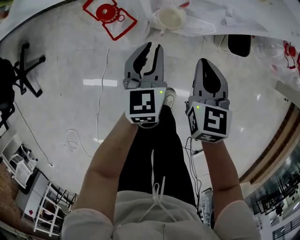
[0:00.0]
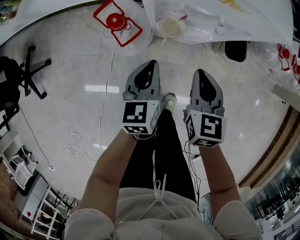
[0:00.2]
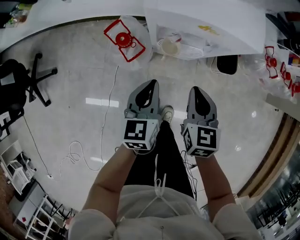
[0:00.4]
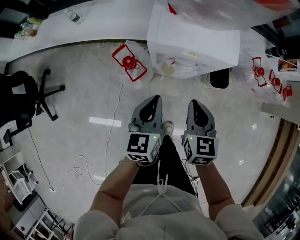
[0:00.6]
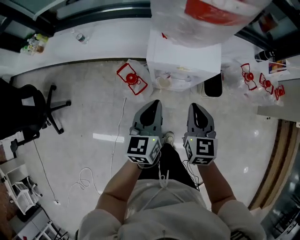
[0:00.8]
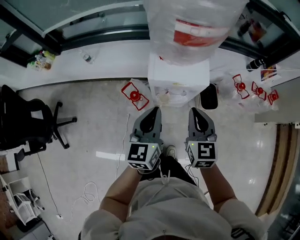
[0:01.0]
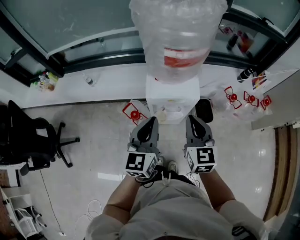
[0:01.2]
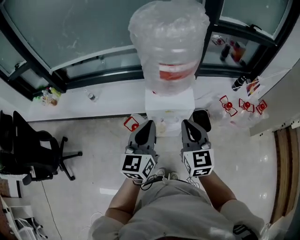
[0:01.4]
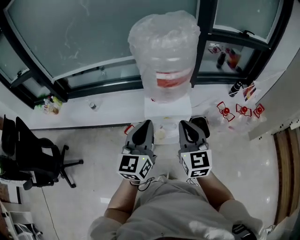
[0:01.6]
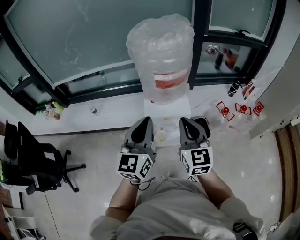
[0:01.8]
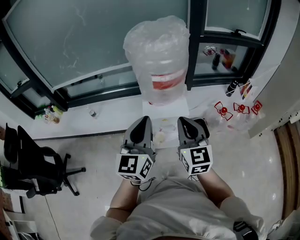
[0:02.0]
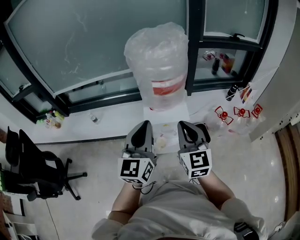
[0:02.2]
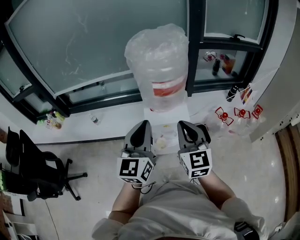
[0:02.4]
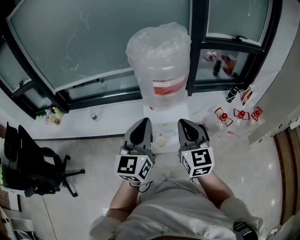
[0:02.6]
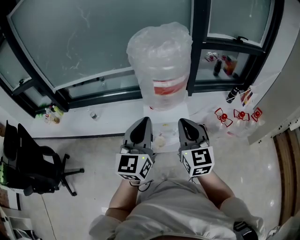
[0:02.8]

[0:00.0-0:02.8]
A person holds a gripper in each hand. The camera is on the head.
0:00.0 to 0:01.4: The two grippers go about 50 cm upward. The left gripper changes its angle by some 30 degrees. Meanwhile the right gripper rotates approximately 30 degrees.
0:01.4 to 0:02.8: The grippers both shift upward by some 10 cm.

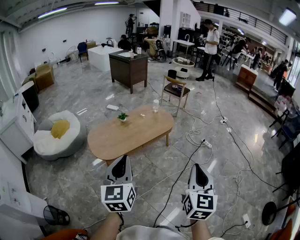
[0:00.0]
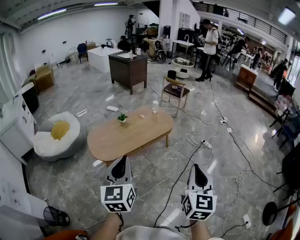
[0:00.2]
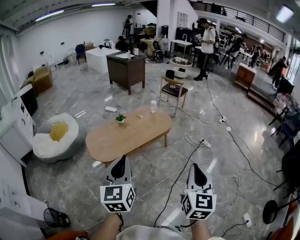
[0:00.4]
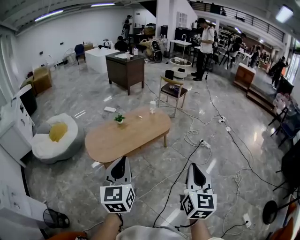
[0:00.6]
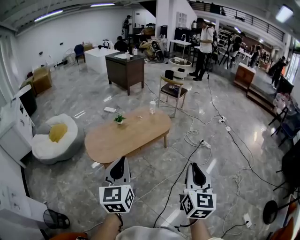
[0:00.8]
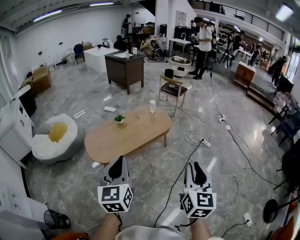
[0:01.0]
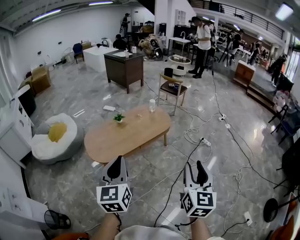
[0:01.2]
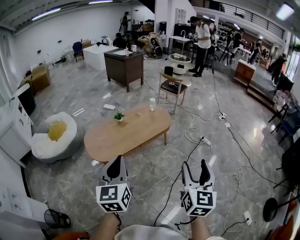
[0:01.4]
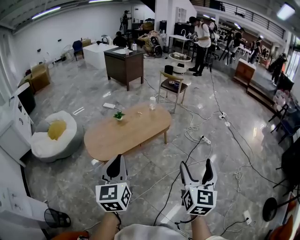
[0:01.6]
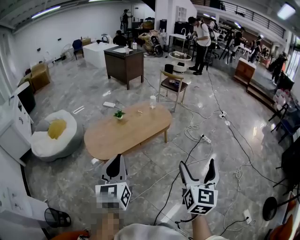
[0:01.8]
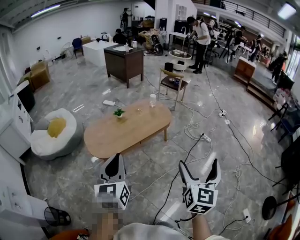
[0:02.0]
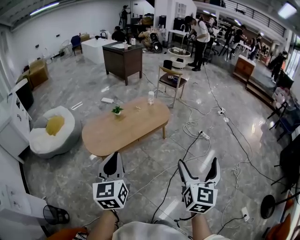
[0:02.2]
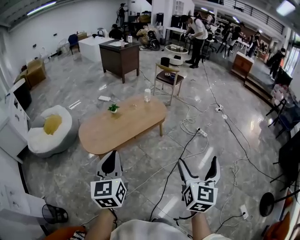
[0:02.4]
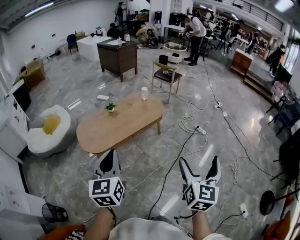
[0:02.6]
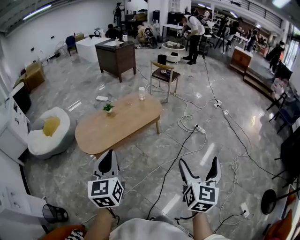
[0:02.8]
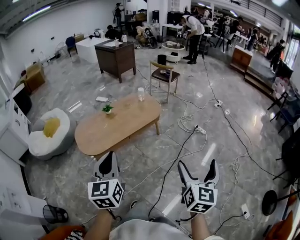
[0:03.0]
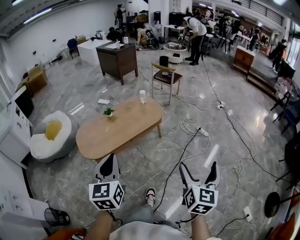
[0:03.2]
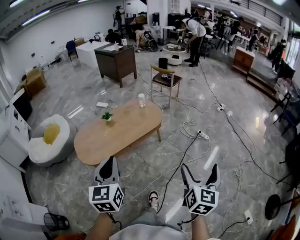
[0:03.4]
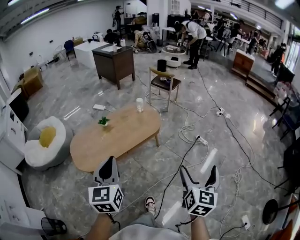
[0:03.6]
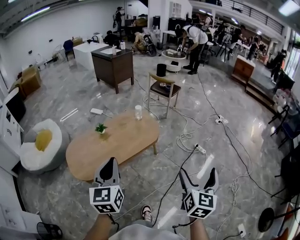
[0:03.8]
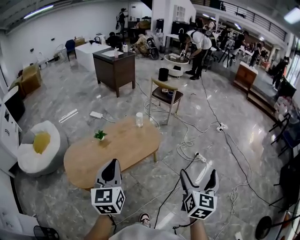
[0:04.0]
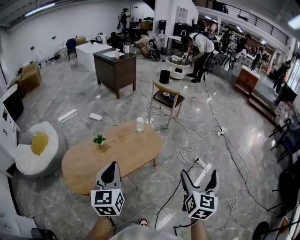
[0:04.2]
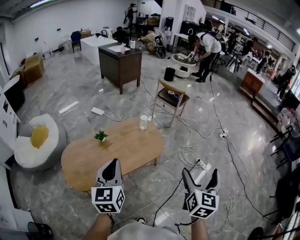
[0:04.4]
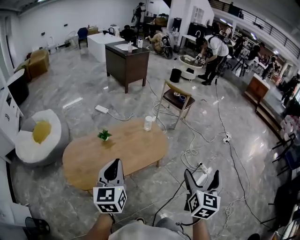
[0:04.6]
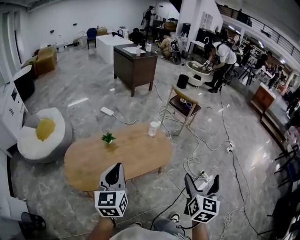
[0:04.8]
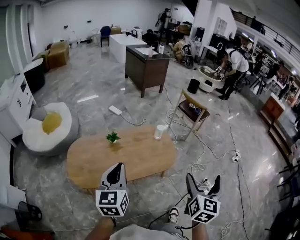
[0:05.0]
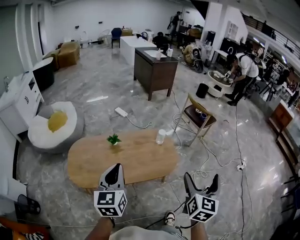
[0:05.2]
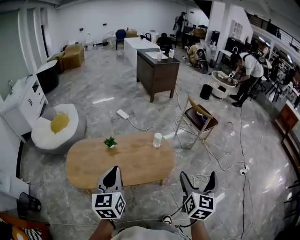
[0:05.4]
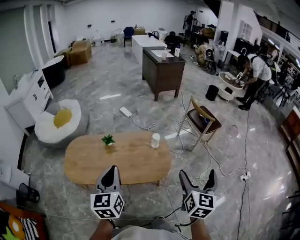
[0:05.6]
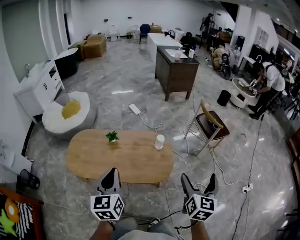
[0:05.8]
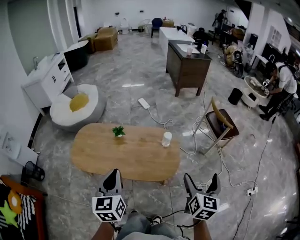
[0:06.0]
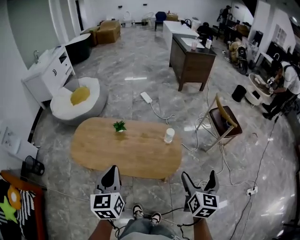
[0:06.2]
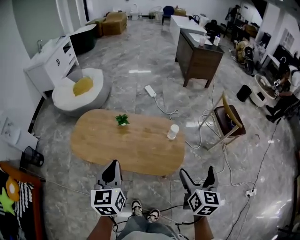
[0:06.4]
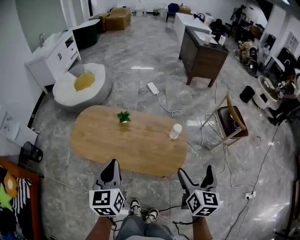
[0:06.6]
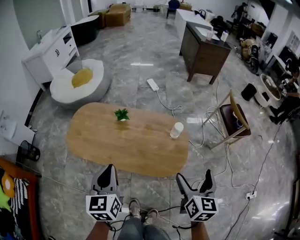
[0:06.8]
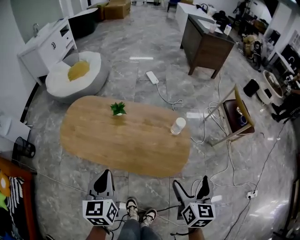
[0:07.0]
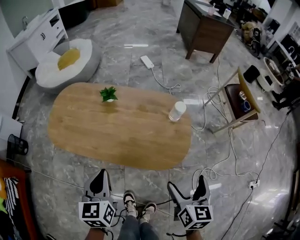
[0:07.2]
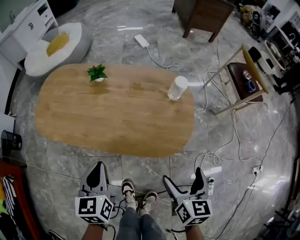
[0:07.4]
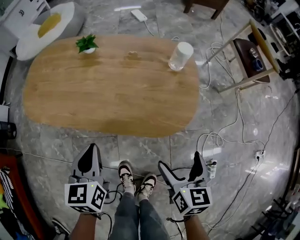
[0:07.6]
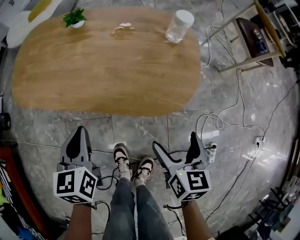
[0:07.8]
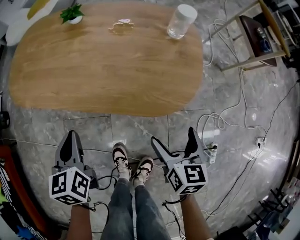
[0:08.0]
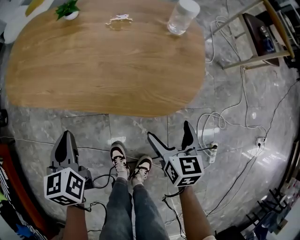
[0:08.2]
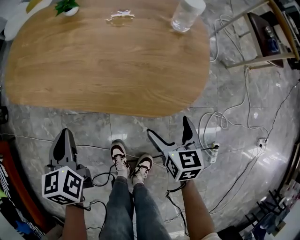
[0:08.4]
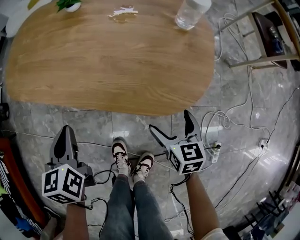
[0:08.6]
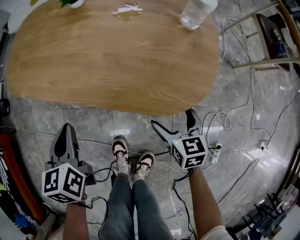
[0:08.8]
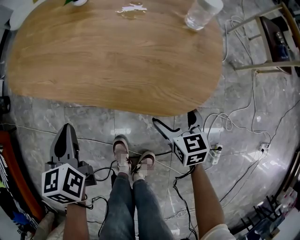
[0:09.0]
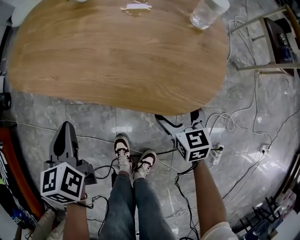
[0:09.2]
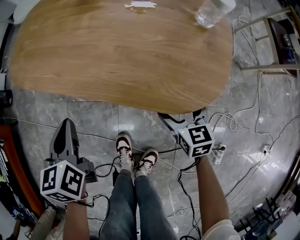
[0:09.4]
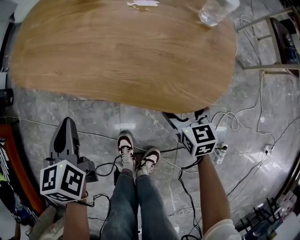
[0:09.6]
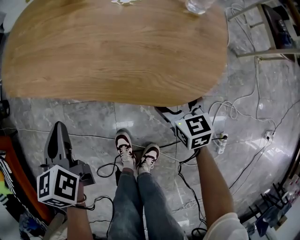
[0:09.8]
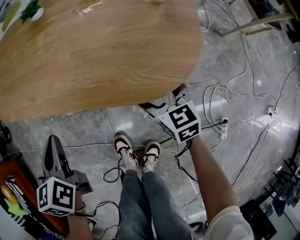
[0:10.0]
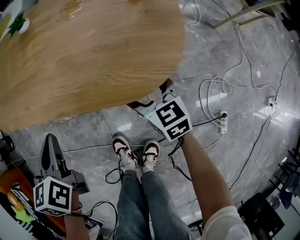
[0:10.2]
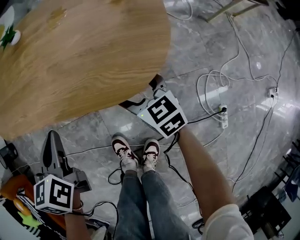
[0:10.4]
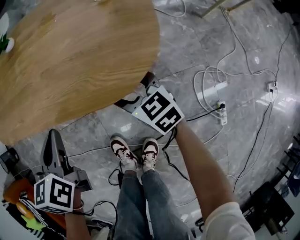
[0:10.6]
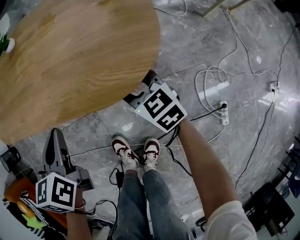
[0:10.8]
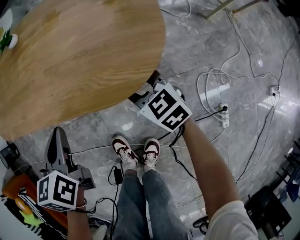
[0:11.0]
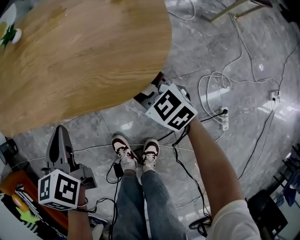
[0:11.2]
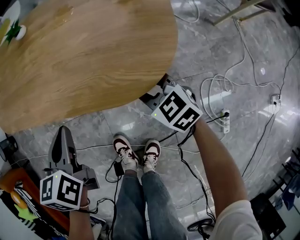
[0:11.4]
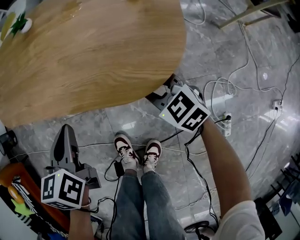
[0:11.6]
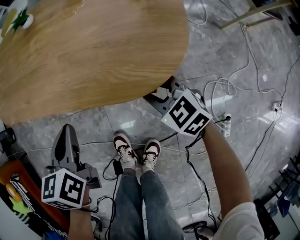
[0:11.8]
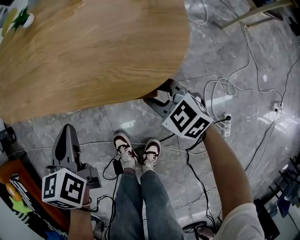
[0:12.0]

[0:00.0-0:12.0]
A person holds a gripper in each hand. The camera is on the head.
0:00.0 to 0:01.6: The right gripper opens.
0:01.6 to 0:03.0: Both grippers move to the right, roughly 10 cm.
0:03.0 to 0:04.4: The grippers both shift forward by roughly 35 cm.
0:04.4 to 0:06.0: The left gripper moves approximately 20 cm, and swivels approximately 40 degrees. The right gripper changes place by some 35 cm, and changes its angle by roughly 40 degrees.
0:06.0 to 0:07.6: Both grippers travel together downward, approximately 35 cm. The right gripper turns by some 30 degrees.
0:07.6 to 0:09.0: The right gripper travels downward by about 20 cm, and swivels approximately 20 degrees. Meanwhile the left gripper goes approximately 10 cm downward.
0:09.0 to 0:10.4: The left gripper travels to the right by approximately 10 cm.
0:10.4 to 0:12.0: The right gripper rotates about 30 degrees, and closes its fingers.

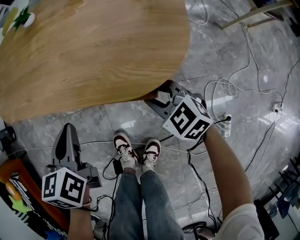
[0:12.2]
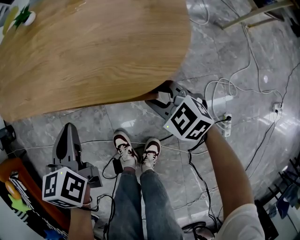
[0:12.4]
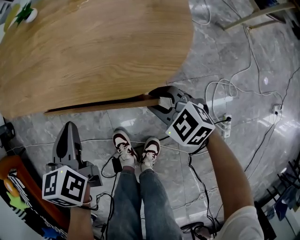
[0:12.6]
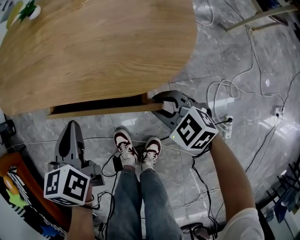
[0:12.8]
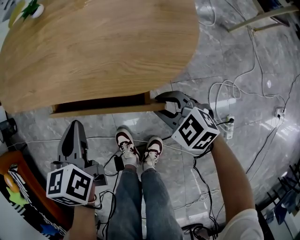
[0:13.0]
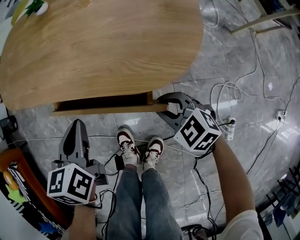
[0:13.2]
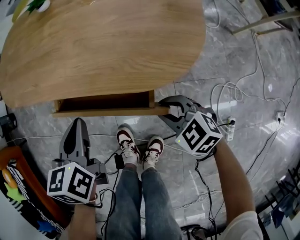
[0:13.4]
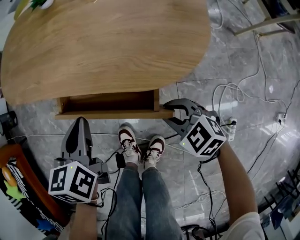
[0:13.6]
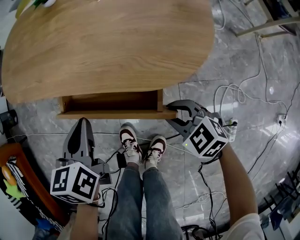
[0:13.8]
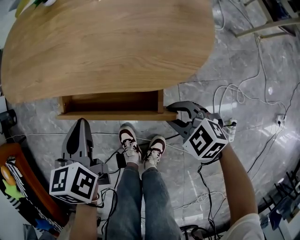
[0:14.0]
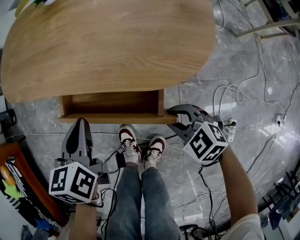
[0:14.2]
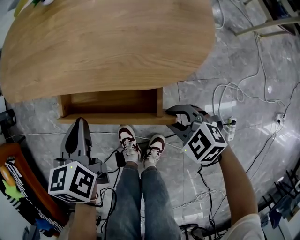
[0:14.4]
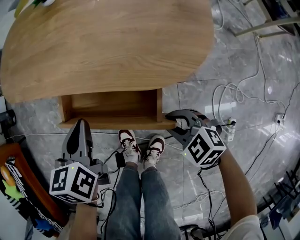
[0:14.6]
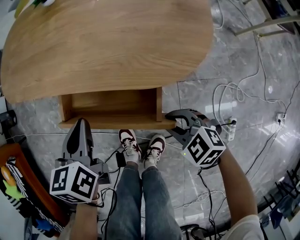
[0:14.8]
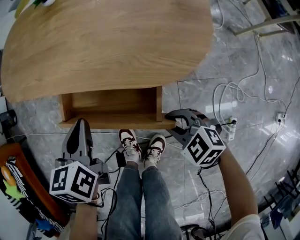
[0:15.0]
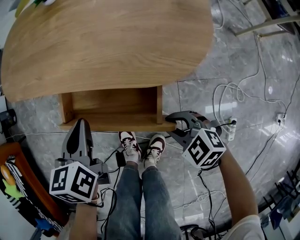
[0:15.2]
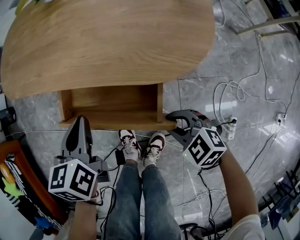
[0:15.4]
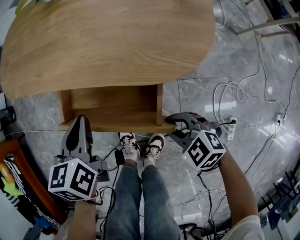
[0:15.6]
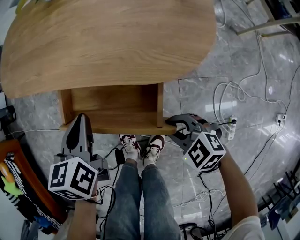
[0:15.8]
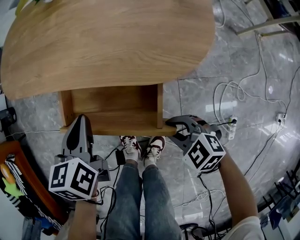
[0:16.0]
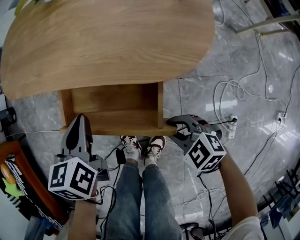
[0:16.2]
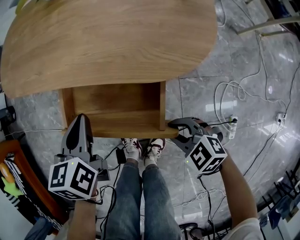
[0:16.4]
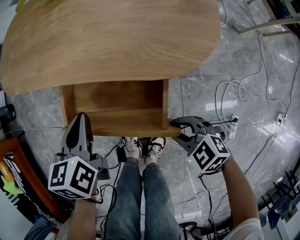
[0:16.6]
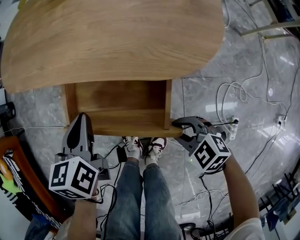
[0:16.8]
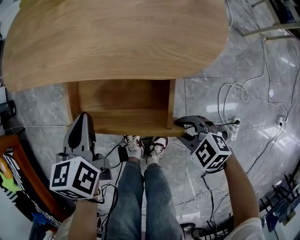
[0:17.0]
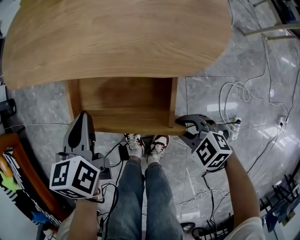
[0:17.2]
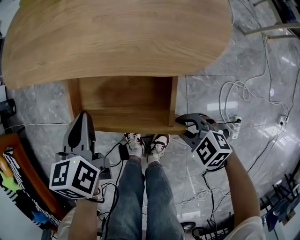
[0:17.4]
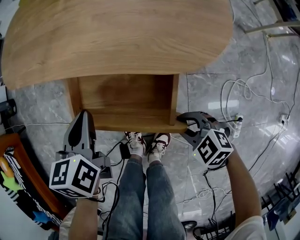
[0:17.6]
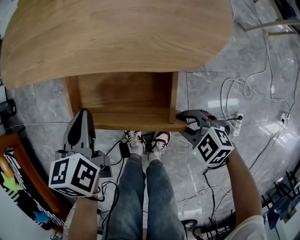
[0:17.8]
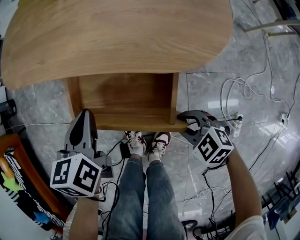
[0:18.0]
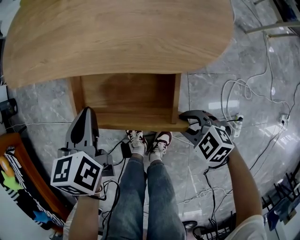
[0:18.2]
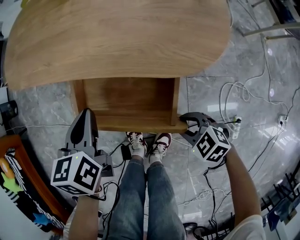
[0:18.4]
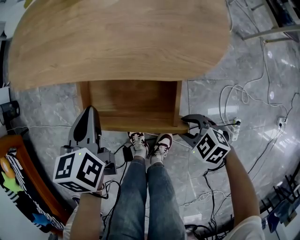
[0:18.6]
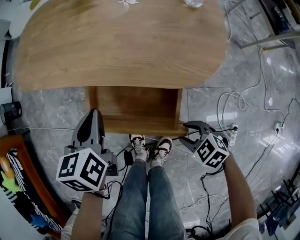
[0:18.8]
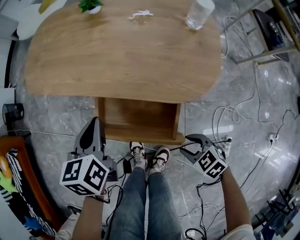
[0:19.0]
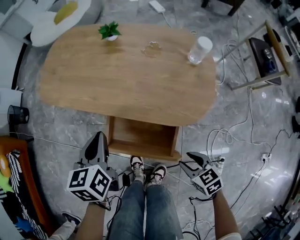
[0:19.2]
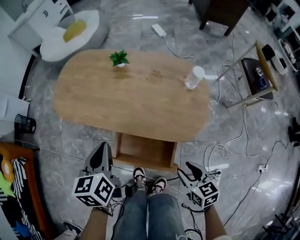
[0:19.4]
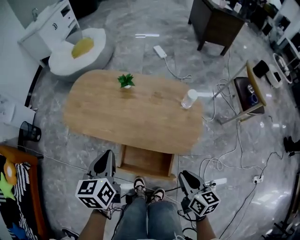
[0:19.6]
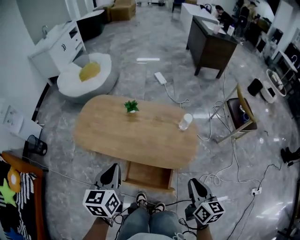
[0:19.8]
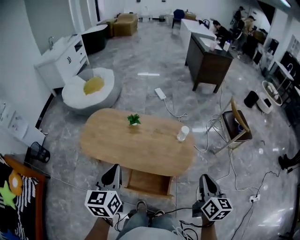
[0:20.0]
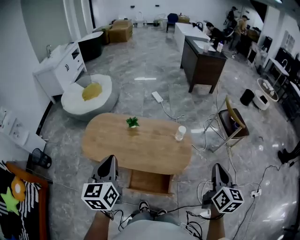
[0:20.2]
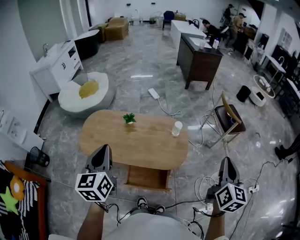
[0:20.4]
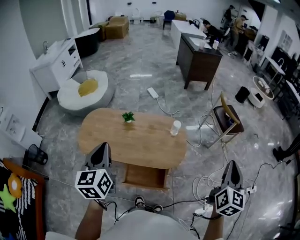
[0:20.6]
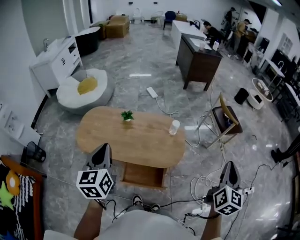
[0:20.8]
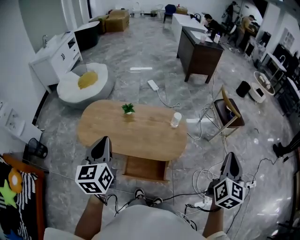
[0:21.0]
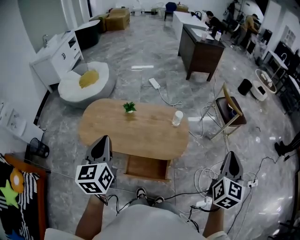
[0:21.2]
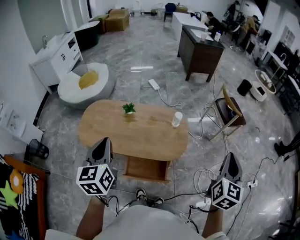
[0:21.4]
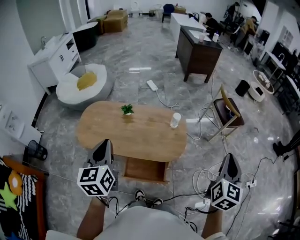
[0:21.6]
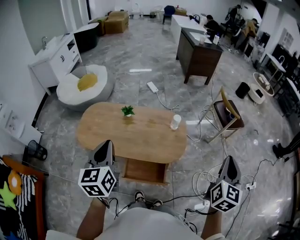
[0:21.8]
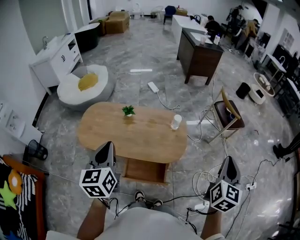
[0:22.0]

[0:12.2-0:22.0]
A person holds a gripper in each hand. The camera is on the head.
0:12.2 to 0:13.6: The right gripper goes roughly 5 cm backward.
0:13.6 to 0:15.0: The grippers stay close to where they were, moving slightly.
0:15.0 to 0:17.8: The grippers stay close to where they were, moving slightly.
0:17.8 to 0:19.2: The two grippers go approximately 15 cm upward. The right gripper turns by approximately 30 degrees.
0:19.2 to 0:20.6: Both grippers travel together upward, approximately 50 cm. The right gripper tips its fingers upward by roughly 40 degrees. The left gripper changes its angle by approximately 30 degrees.
0:20.6 to 0:22.0: There are only small adjustments of the grippers.
